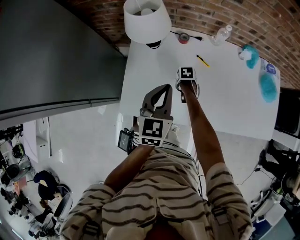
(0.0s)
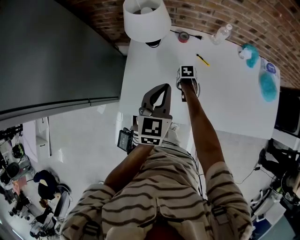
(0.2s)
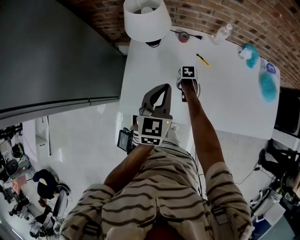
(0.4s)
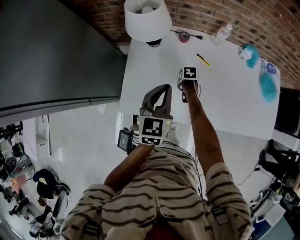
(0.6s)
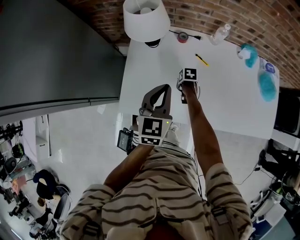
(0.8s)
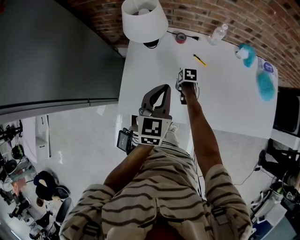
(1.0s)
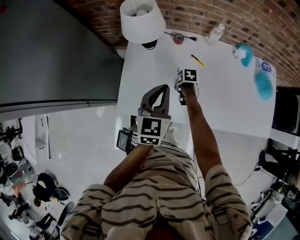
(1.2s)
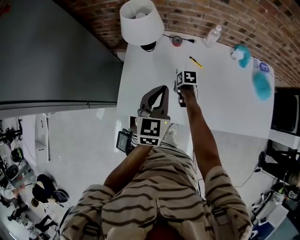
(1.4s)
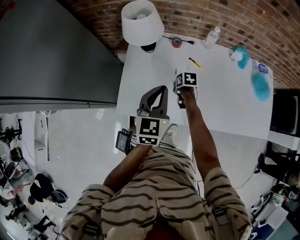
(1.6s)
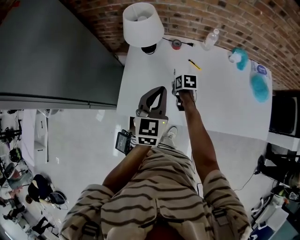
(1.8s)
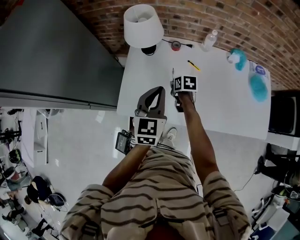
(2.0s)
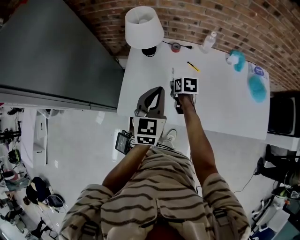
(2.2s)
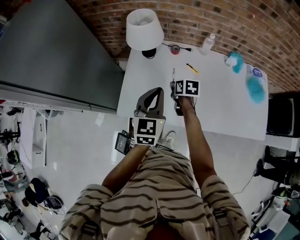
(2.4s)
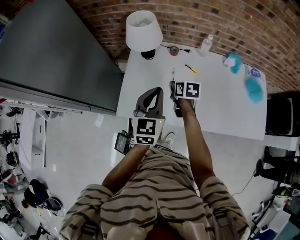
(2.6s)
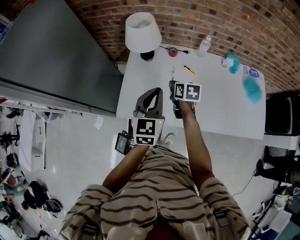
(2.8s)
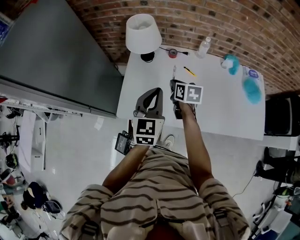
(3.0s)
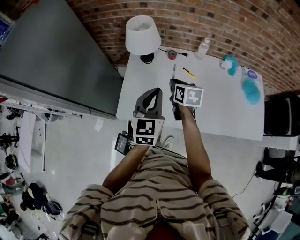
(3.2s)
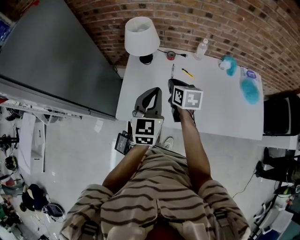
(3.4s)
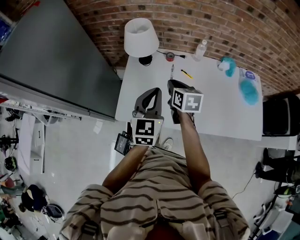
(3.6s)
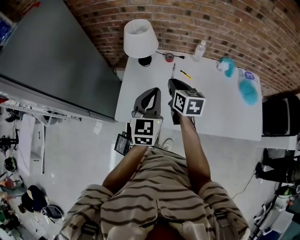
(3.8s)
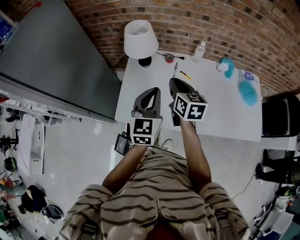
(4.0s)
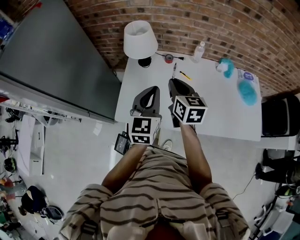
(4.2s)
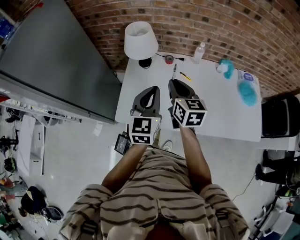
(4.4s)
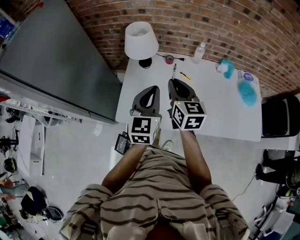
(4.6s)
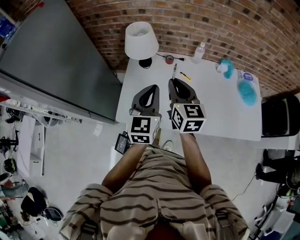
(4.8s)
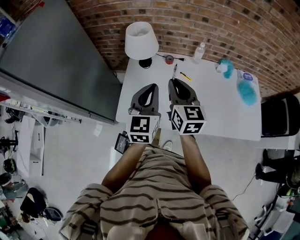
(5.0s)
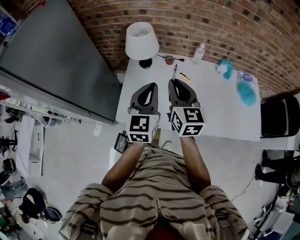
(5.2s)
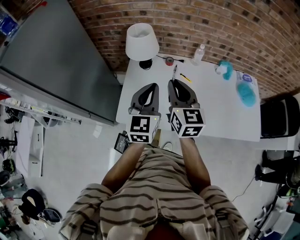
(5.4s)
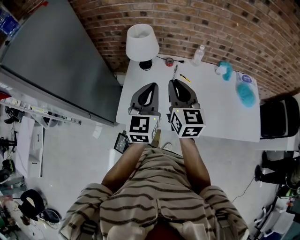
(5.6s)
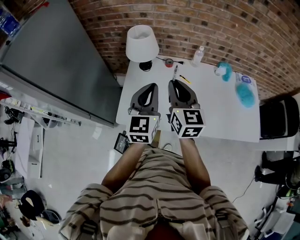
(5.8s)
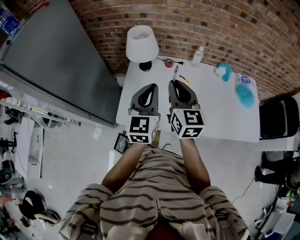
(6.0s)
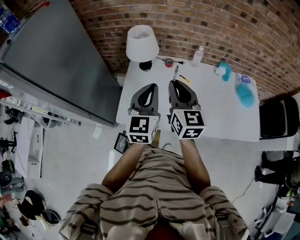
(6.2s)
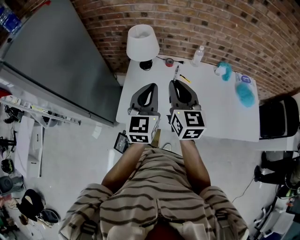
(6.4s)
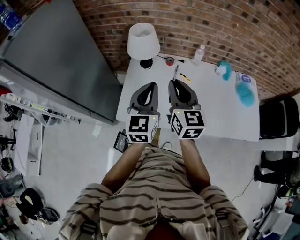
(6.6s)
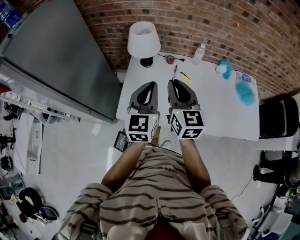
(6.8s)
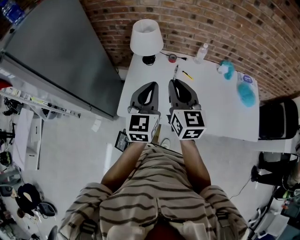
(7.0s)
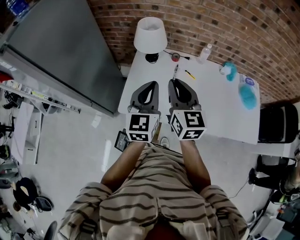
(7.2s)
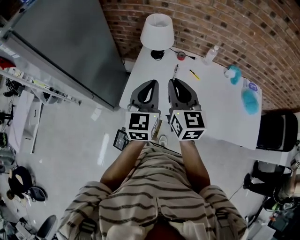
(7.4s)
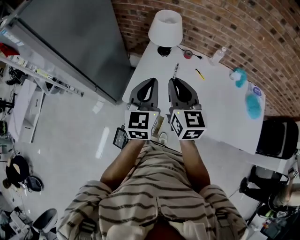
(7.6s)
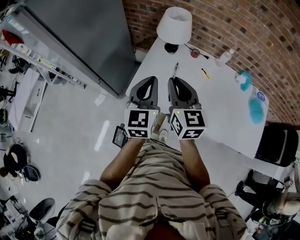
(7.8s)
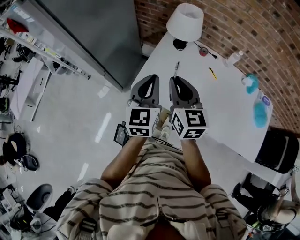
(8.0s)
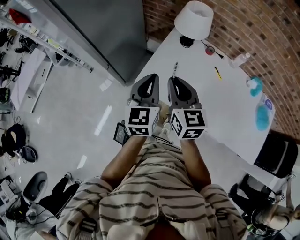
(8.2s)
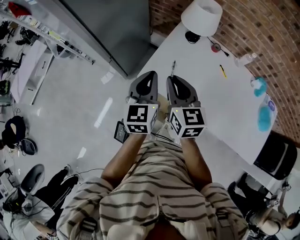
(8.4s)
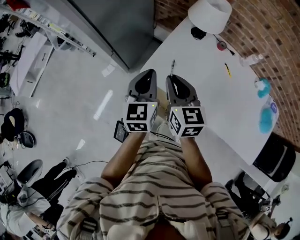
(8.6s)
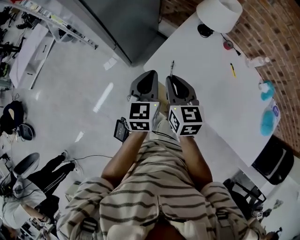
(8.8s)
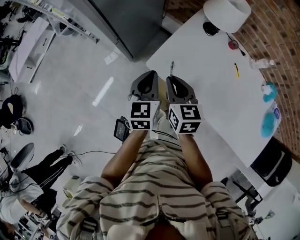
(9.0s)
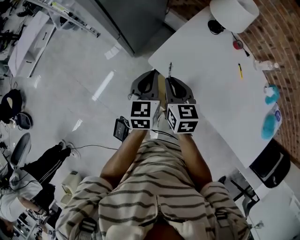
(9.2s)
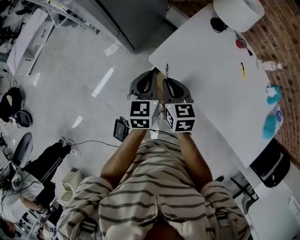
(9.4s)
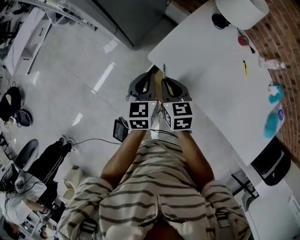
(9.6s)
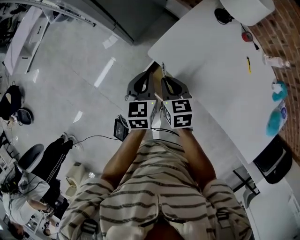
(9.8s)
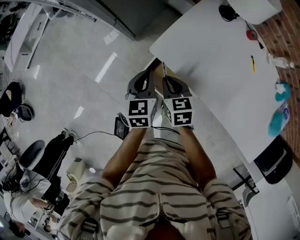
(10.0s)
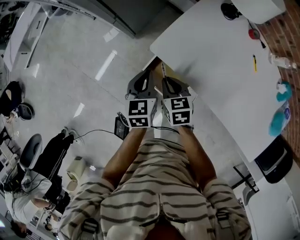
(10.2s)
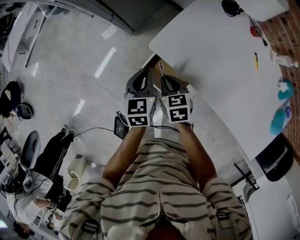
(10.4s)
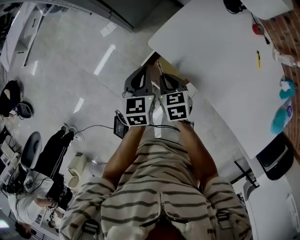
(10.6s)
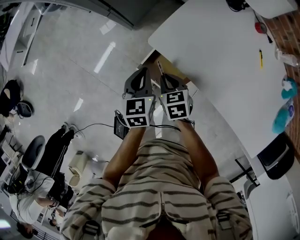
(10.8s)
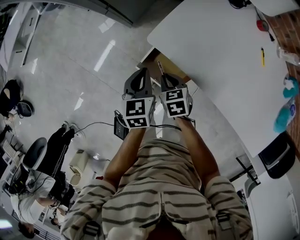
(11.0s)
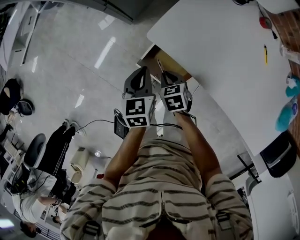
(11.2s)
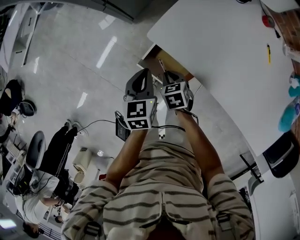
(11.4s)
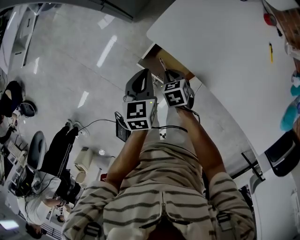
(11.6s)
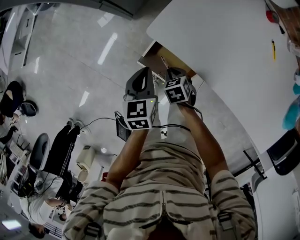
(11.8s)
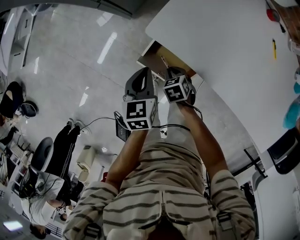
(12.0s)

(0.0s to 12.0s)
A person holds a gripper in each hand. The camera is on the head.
0.0s - 1.6s: The right gripper heads upward, covering about 10 cm.
1.6s - 3.0s: The right gripper shifts roughly 20 cm upward, and swivels about 30 degrees. The left gripper shifts by roughly 5 cm.
3.0s - 4.4s: The right gripper travels upward by approximately 15 cm, and rotates approximately 30 degrees.
4.4s - 6.0s: The right gripper is displaced upward by approximately 5 cm.
6.0s - 7.6s: Both grippers travel together to the left, approximately 5 cm.
7.6s - 9.0s: Both grippers move downward and to the left, approximately 20 cm. The left gripper rotates some 30 degrees. The right gripper swivels about 30 degrees.
9.0s - 10.4s: Both grippers travel together downward, roughly 15 cm. The right gripper rotates approximately 30 degrees.
10.4s - 12.0s: The left gripper is displaced downward by roughly 10 cm; the right gripper shifts approximately 15 cm downward, and changes its angle by approximately 20 degrees.

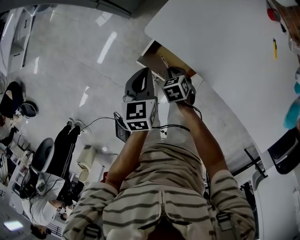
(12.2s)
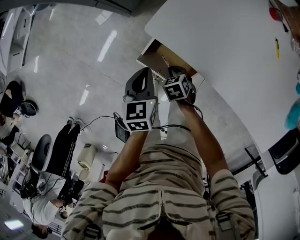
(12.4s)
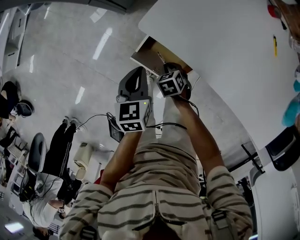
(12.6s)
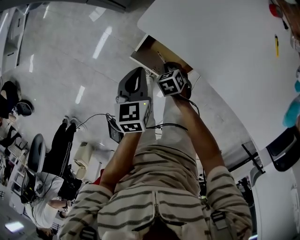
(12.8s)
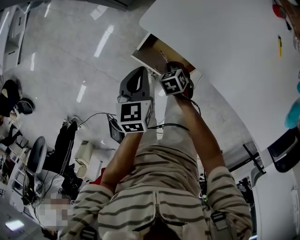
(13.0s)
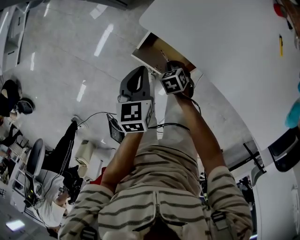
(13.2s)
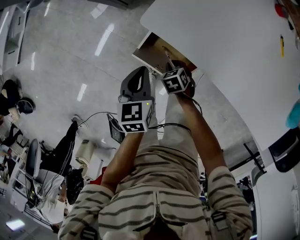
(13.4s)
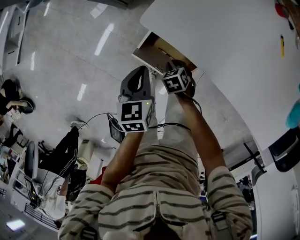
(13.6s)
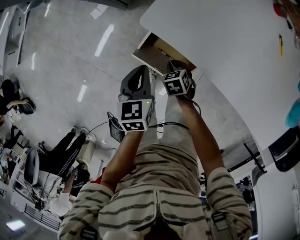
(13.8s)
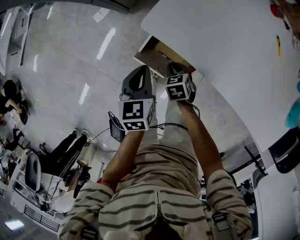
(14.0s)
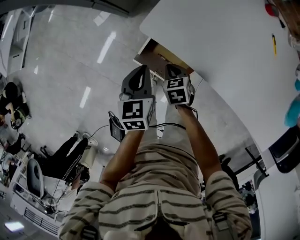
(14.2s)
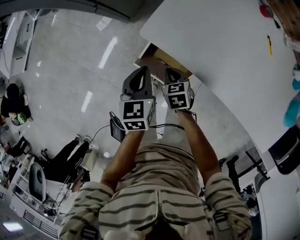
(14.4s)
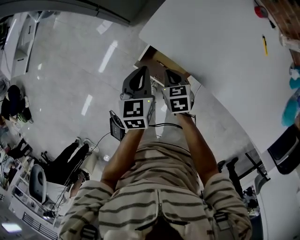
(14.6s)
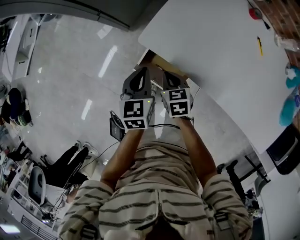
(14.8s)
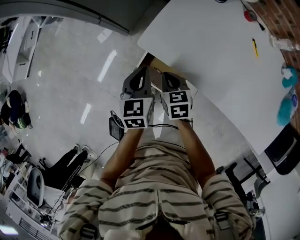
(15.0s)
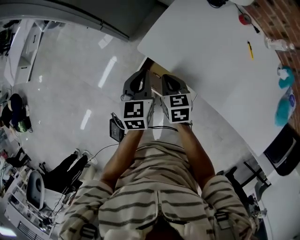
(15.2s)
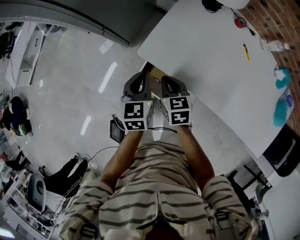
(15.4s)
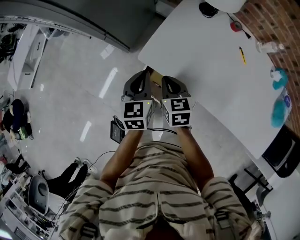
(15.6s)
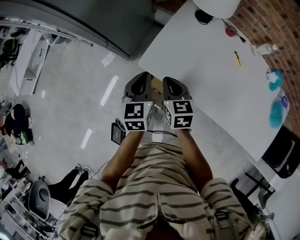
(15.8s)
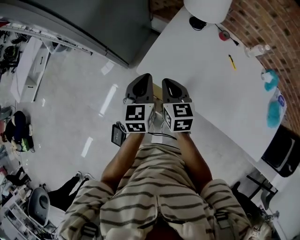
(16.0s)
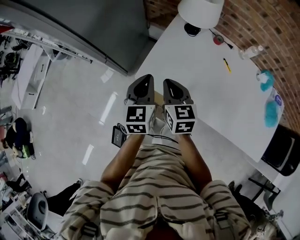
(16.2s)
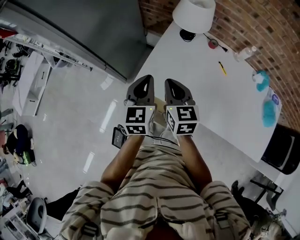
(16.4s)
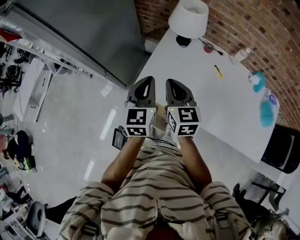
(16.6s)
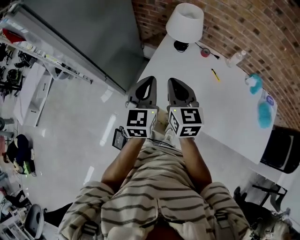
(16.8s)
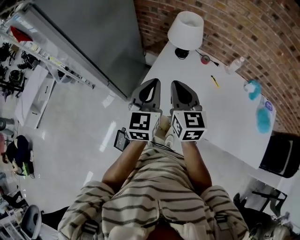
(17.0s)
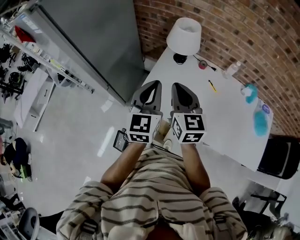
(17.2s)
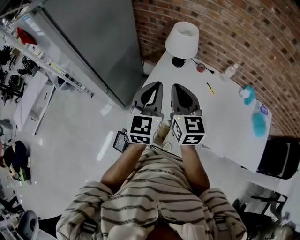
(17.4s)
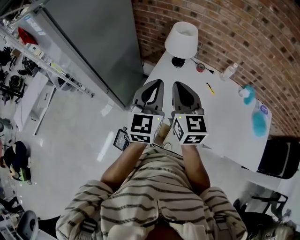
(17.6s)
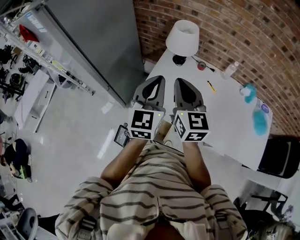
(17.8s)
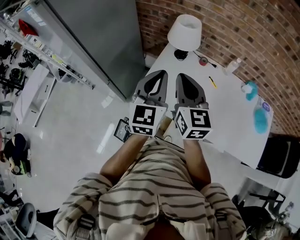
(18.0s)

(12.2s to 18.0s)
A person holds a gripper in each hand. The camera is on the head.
12.2s - 13.6s: The right gripper moves downward, roughly 5 cm.
13.6s - 15.0s: The right gripper heads upward, covering some 20 cm, and rotates some 30 degrees, while the left gripper travels upward by about 10 cm.
15.0s - 16.6s: The grippers both shift upward by approximately 25 cm. The right gripper angles its fingers upward, by some 30 degrees; the left gripper swivels approximately 30 degrees.
16.6s - 18.0s: Both grippers move upward, some 15 cm.

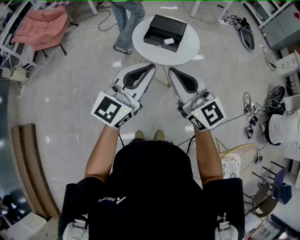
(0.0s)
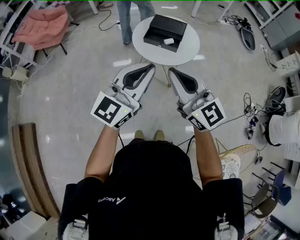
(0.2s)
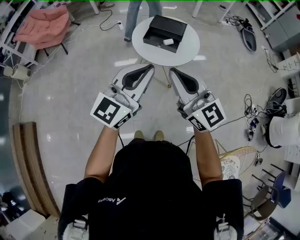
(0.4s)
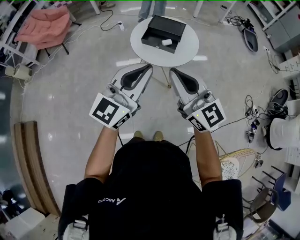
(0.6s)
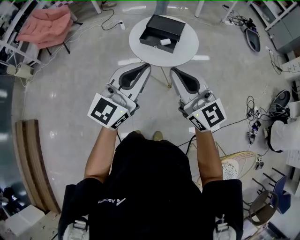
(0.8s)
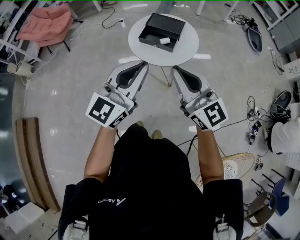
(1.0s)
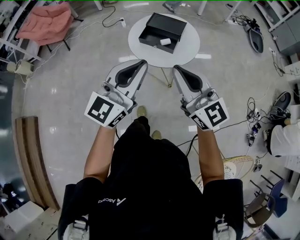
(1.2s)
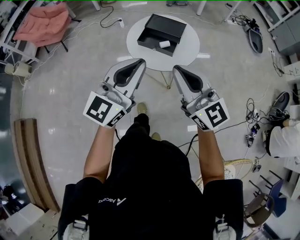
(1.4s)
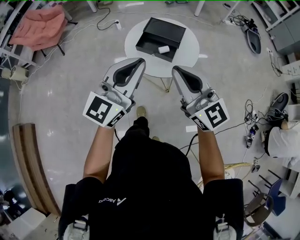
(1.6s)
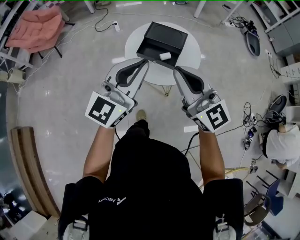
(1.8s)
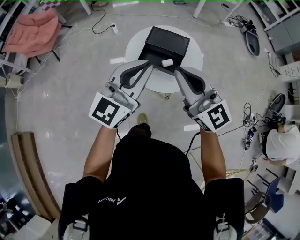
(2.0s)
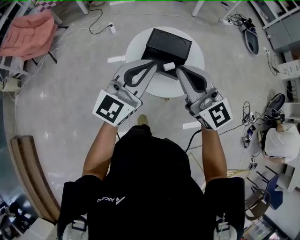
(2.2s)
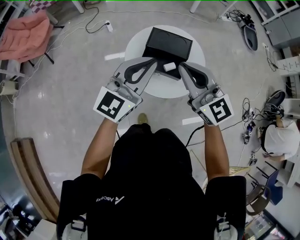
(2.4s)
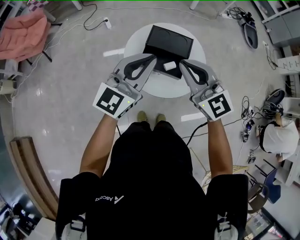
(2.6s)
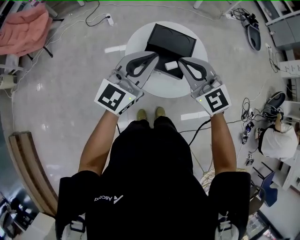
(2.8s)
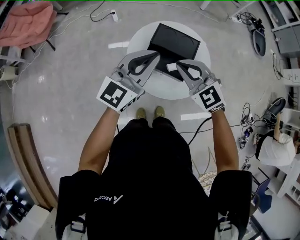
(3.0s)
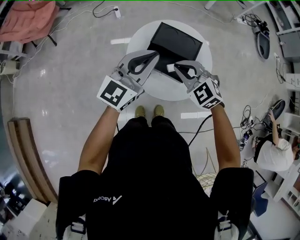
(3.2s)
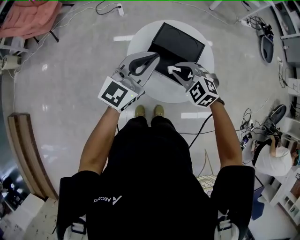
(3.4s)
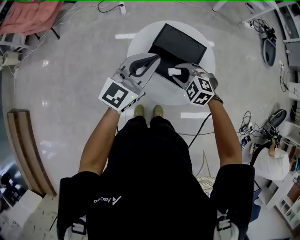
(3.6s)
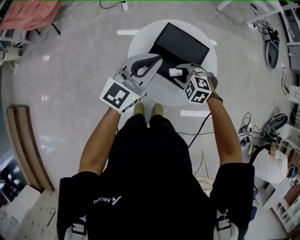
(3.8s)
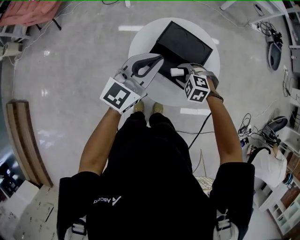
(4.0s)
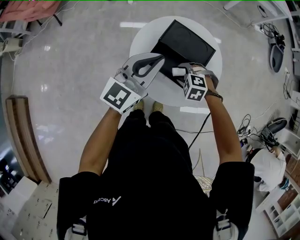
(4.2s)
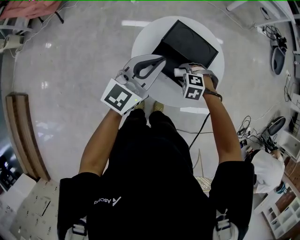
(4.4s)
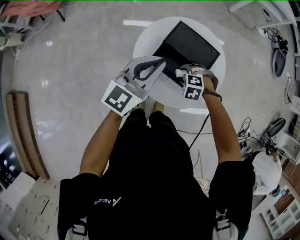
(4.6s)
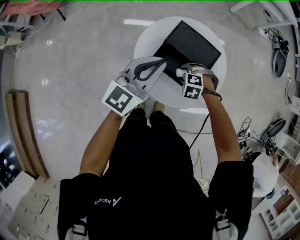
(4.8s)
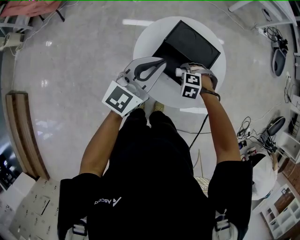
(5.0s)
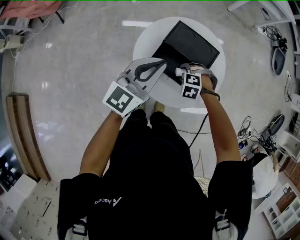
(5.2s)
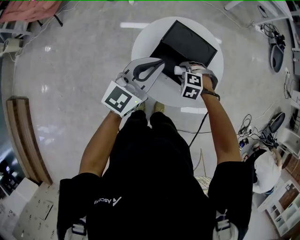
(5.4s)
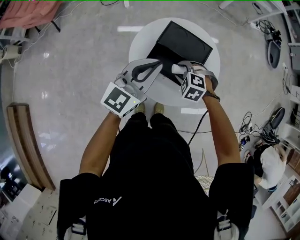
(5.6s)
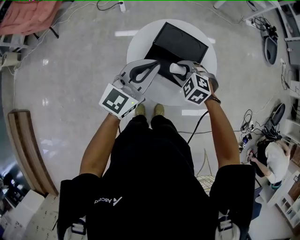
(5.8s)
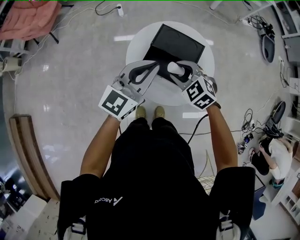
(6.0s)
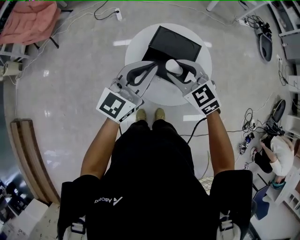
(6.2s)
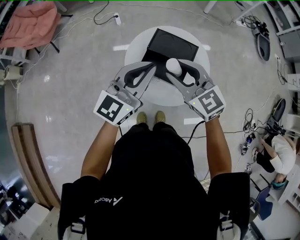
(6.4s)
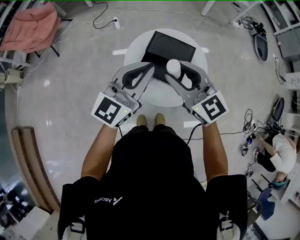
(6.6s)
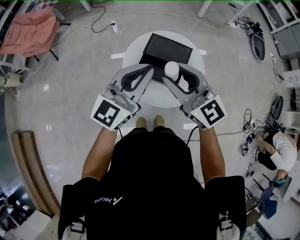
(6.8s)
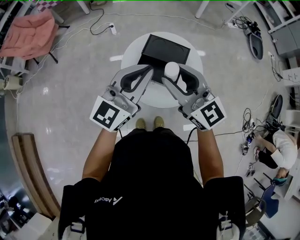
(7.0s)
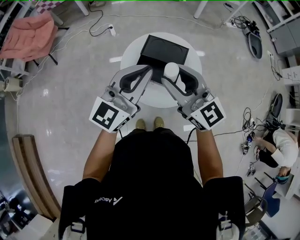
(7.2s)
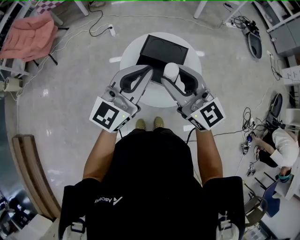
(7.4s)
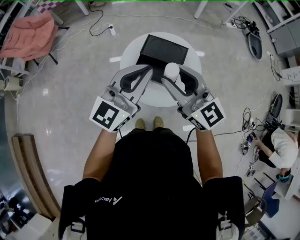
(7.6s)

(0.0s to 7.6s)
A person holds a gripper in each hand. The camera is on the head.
0.0s - 1.6s: The left gripper is displaced forward by some 15 cm; the right gripper travels forward and to the right by approximately 15 cm.
1.6s - 3.0s: The left gripper heads forward, covering approximately 25 cm; the right gripper goes some 30 cm forward and downward, and tips its fingers downward by approximately 30 degrees.
3.0s - 4.6s: The left gripper travels downward by roughly 10 cm. The right gripper moves downward, some 30 cm, angles its fingers downward, by roughly 50 degrees, and opens its fingers.
4.6s - 6.0s: The right gripper travels upward by about 15 cm, and points its fingers about 30 degrees further upward. The left gripper moves roughly 5 cm.
6.0s - 7.6s: The right gripper travels upward by approximately 25 cm, and angles its fingers upward, by approximately 50 degrees. The left gripper is displaced upward and backward by approximately 15 cm.
